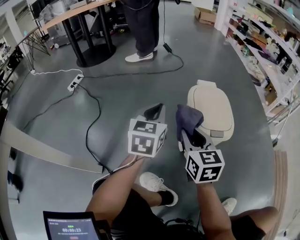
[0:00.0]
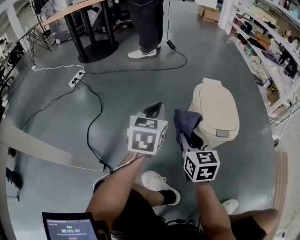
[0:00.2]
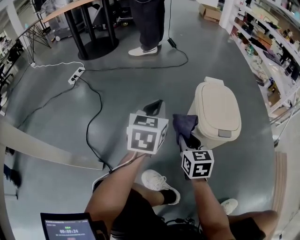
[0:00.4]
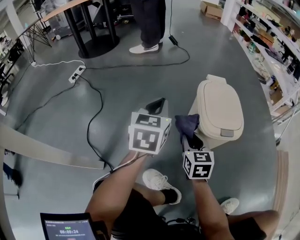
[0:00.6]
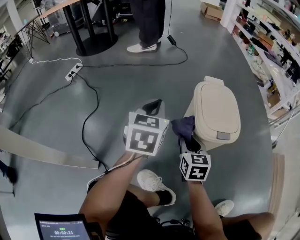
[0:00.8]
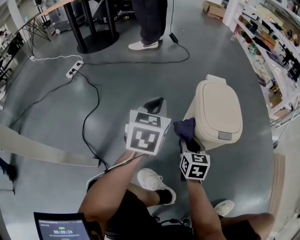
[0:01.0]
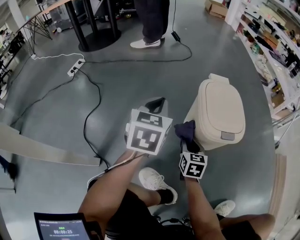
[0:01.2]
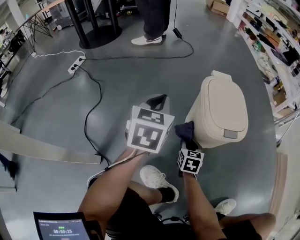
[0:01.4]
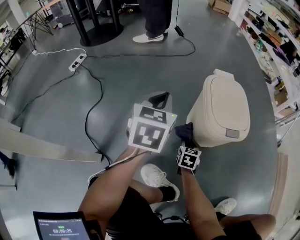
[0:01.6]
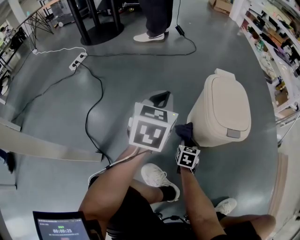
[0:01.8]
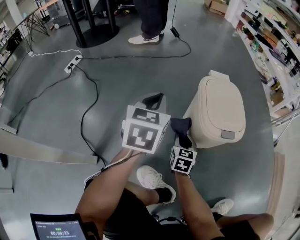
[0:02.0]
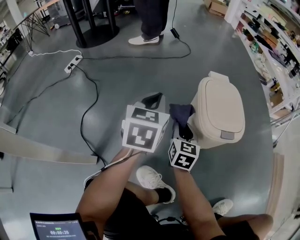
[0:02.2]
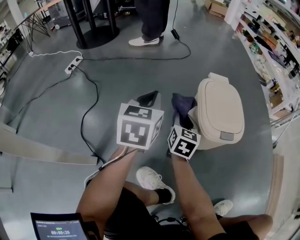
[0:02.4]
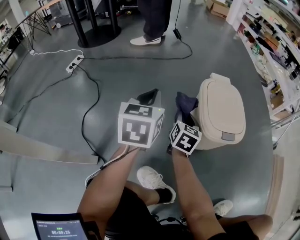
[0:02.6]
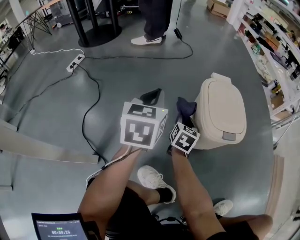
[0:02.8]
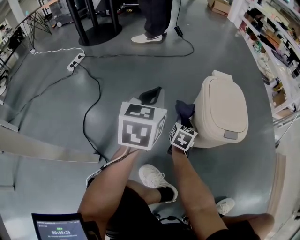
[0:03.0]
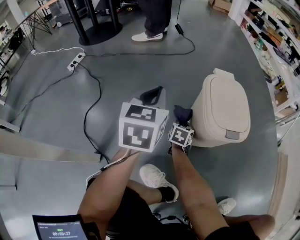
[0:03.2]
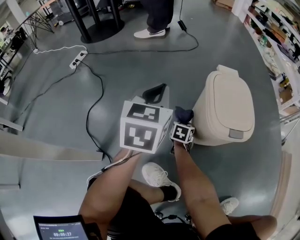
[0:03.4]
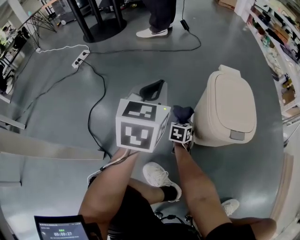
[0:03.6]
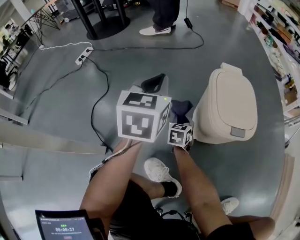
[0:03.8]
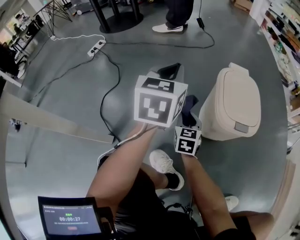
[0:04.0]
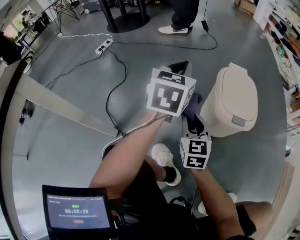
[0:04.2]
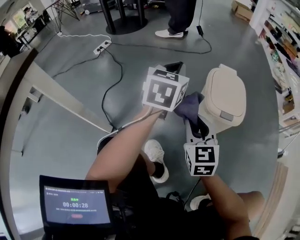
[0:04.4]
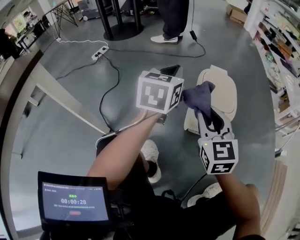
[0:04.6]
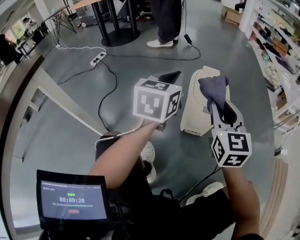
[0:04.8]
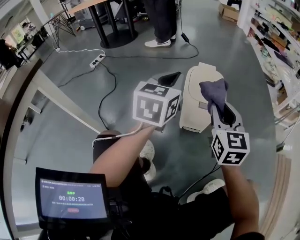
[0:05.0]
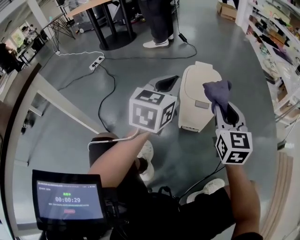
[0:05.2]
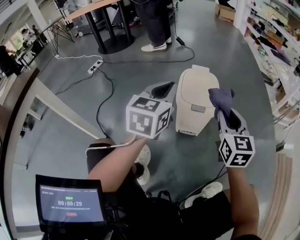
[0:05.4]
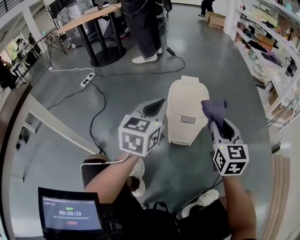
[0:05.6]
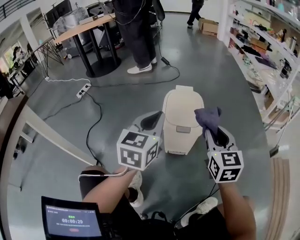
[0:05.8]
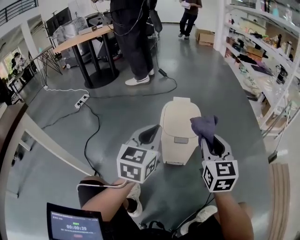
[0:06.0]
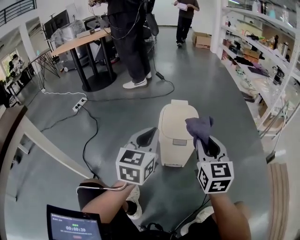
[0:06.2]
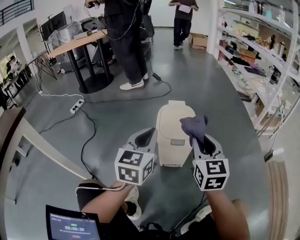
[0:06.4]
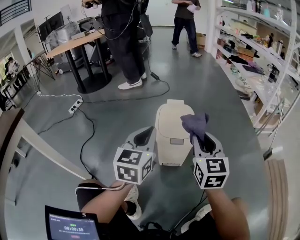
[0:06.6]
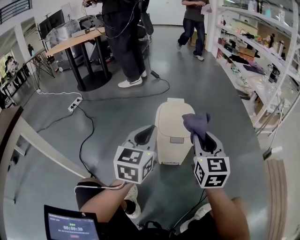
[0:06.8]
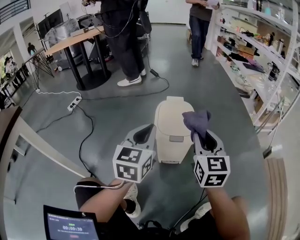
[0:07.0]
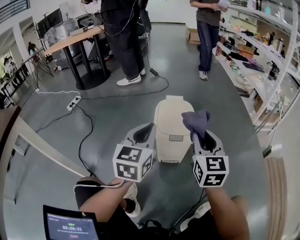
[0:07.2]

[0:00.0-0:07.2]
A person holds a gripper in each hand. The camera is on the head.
0:00.0 to 0:01.4: The right gripper shifts roughly 25 cm downward, and rotates roughly 20 degrees.
0:01.4 to 0:02.8: The right gripper swings up and down, some 20 cm each way, with 2 reversals.
0:02.8 to 0:04.4: The left gripper moves upward, approximately 10 cm; the right gripper heads backward and upward, covering roughly 25 cm, and turns by some 40 degrees.
0:04.4 to 0:05.8: The left gripper goes approximately 20 cm to the right and backward; the right gripper goes approximately 25 cm to the right.
0:05.8 to 0:07.2: The grippers move only a little.

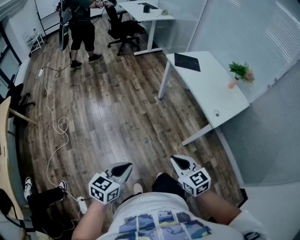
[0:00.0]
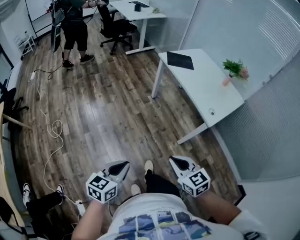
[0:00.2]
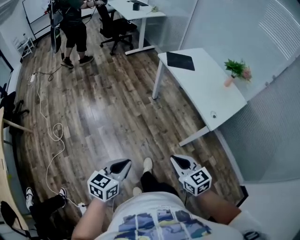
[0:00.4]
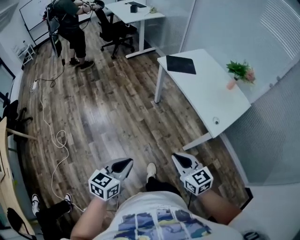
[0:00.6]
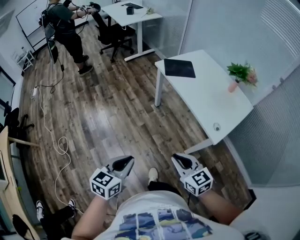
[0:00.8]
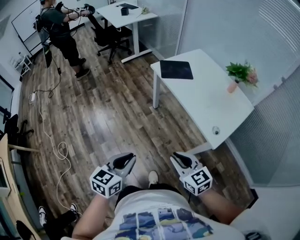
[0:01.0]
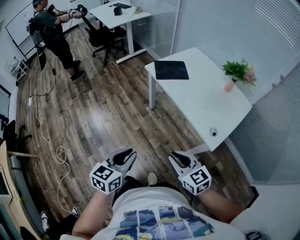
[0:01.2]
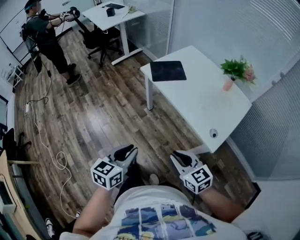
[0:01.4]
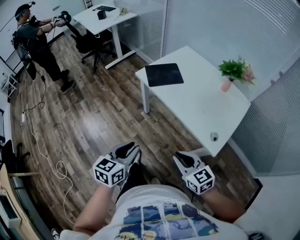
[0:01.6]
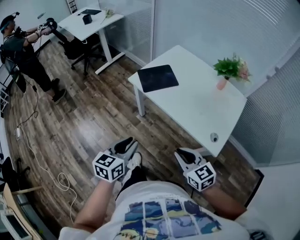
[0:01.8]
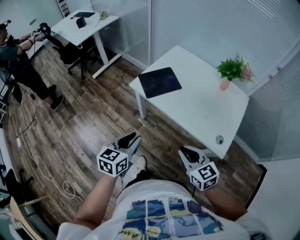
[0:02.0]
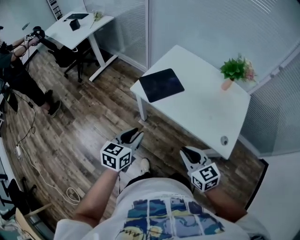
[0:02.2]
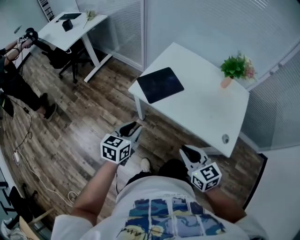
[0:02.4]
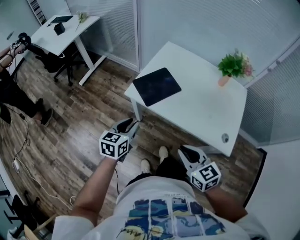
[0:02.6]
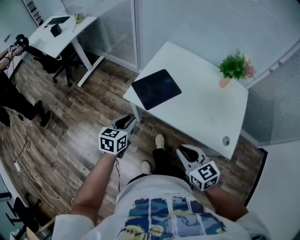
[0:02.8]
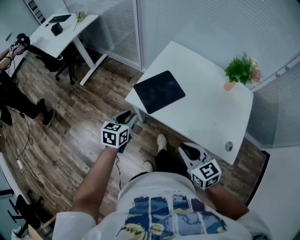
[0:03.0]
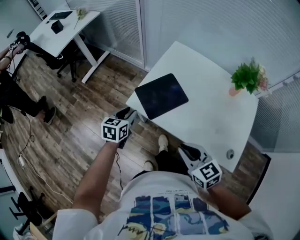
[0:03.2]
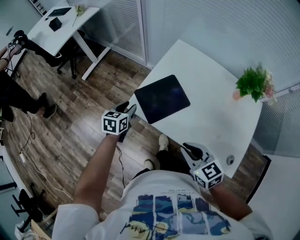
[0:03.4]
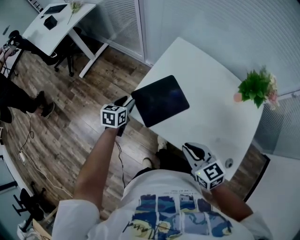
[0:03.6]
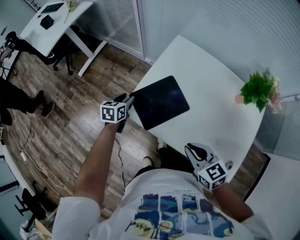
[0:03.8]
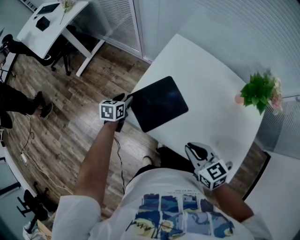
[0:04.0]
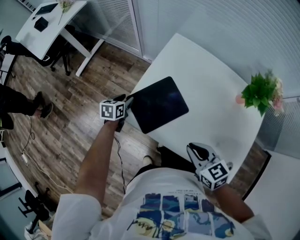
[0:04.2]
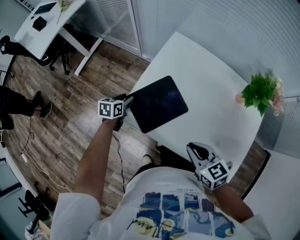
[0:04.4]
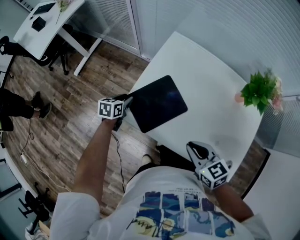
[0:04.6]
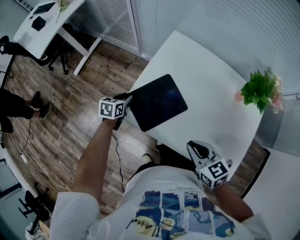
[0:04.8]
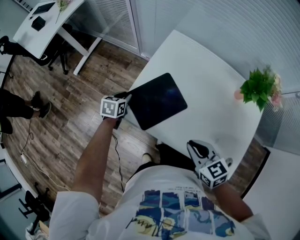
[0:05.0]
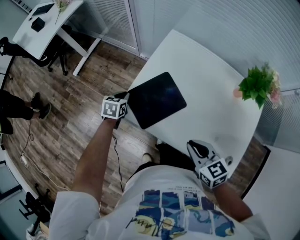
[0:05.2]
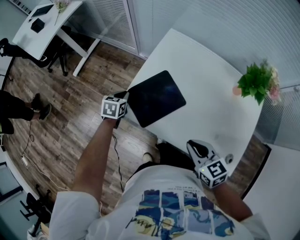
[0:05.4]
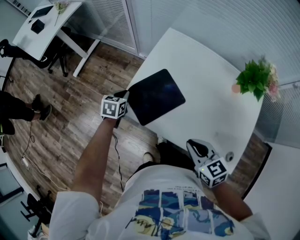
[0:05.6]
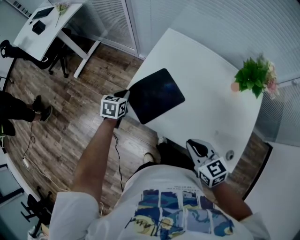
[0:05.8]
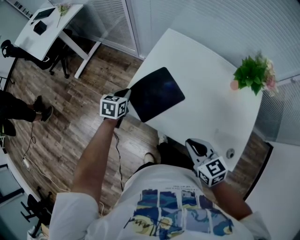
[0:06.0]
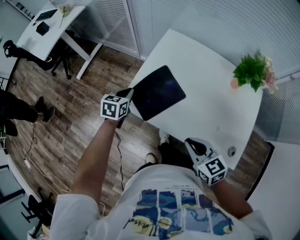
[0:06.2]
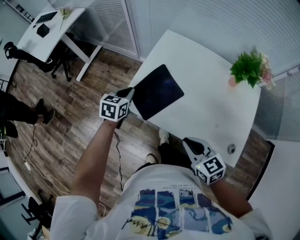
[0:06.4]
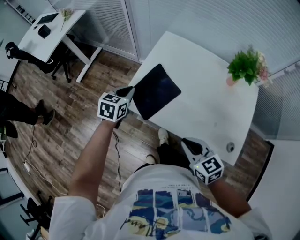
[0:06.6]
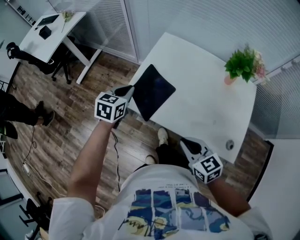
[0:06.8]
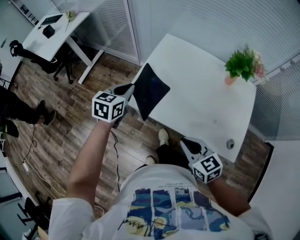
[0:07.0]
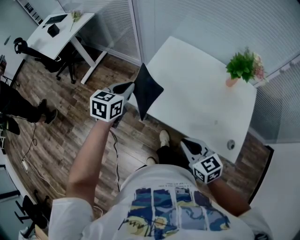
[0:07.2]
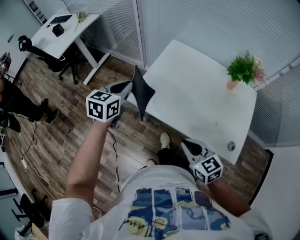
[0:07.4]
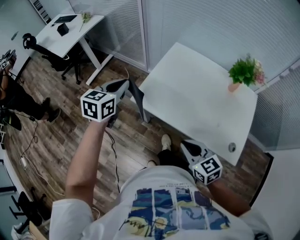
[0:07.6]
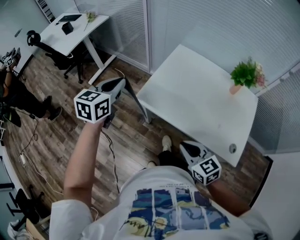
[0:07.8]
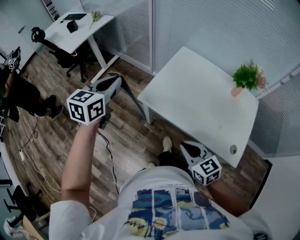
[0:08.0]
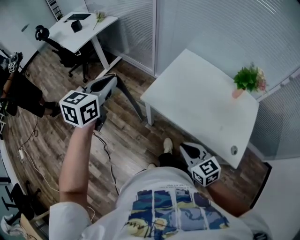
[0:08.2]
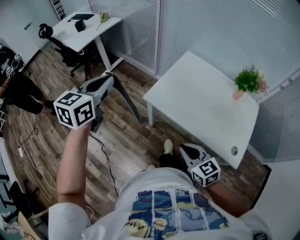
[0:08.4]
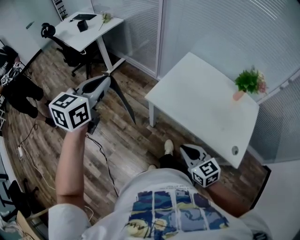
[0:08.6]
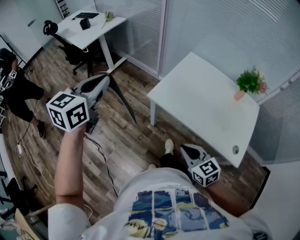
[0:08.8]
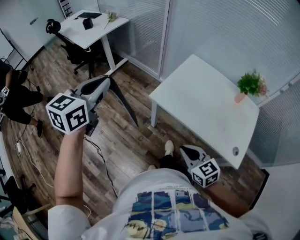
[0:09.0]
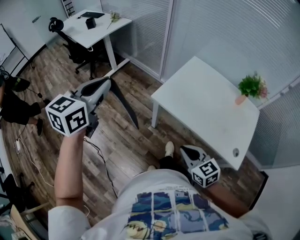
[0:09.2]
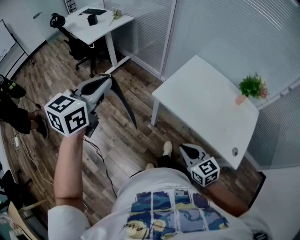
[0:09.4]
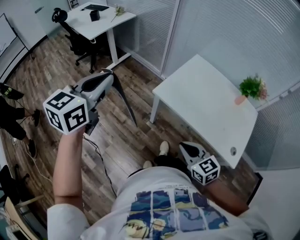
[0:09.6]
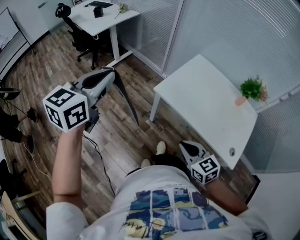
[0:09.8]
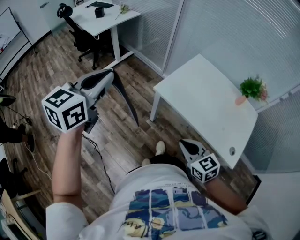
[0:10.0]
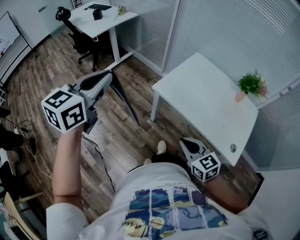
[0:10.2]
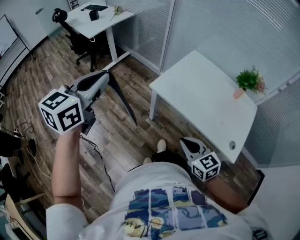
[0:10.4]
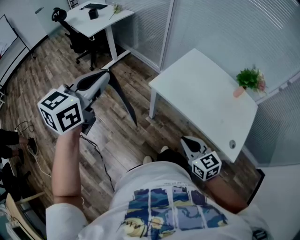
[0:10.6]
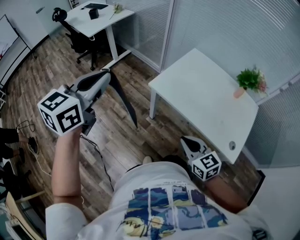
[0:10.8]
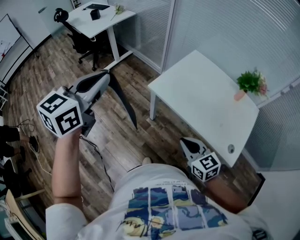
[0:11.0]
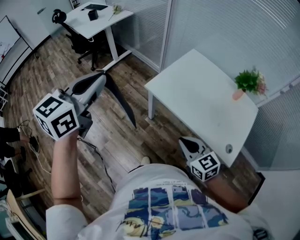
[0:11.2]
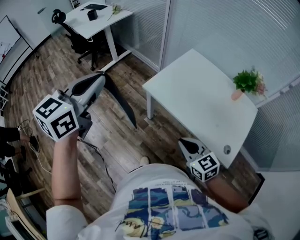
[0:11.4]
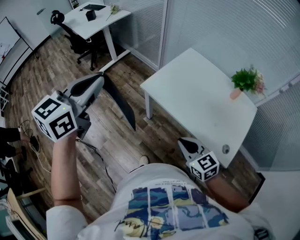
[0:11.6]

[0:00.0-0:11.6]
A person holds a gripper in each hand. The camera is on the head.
0:00.0 to 0:01.4: Both grippers move forward, some 35 cm.
0:01.4 to 0:02.8: The left gripper moves forward, about 50 cm, while the right gripper travels forward and to the left by some 30 cm, and swivels roughly 30 degrees.
0:02.8 to 0:04.4: The right gripper shifts some 20 cm forward. Meanwhile the left gripper goes roughly 35 cm forward and downward, and turns by roughly 20 degrees.
0:04.4 to 0:05.8: The left gripper shifts roughly 5 cm upward, and closes.
0:05.8 to 0:07.2: The right gripper goes roughly 10 cm backward. The left gripper shifts about 25 cm upward and backward.
0:07.2 to 0:08.8: The right gripper moves to the left and backward, roughly 15 cm; the left gripper travels to the left, upward and backward by roughly 35 cm.
0:08.8 to 0:10.2: The left gripper goes approximately 10 cm backward.
0:10.2 to 0:11.6: The two grippers go some 10 cm to the right.

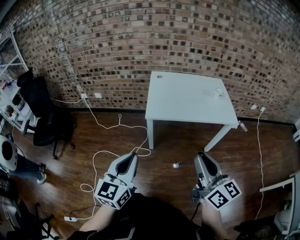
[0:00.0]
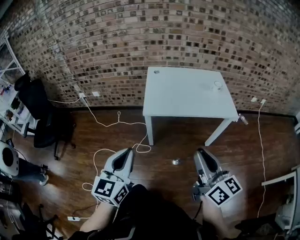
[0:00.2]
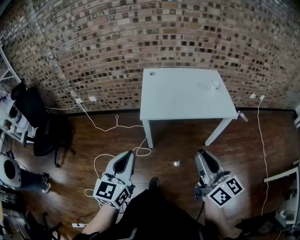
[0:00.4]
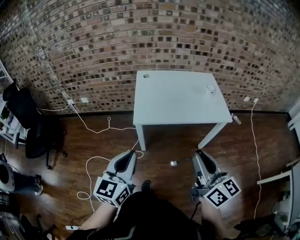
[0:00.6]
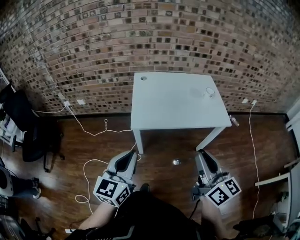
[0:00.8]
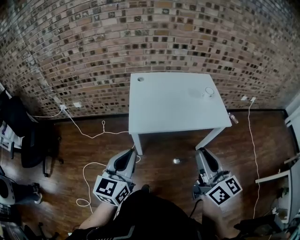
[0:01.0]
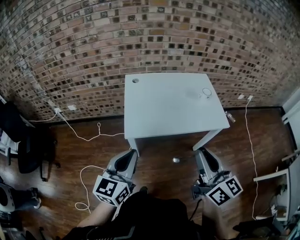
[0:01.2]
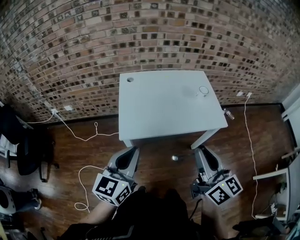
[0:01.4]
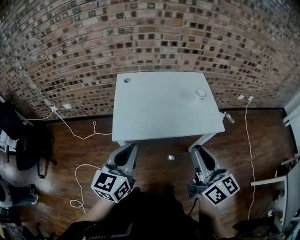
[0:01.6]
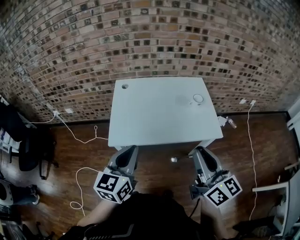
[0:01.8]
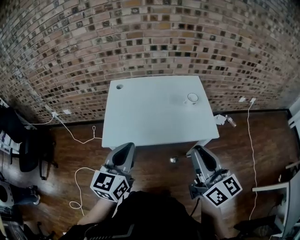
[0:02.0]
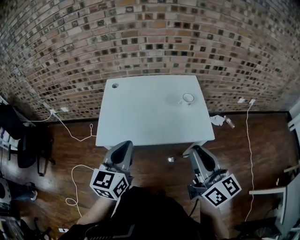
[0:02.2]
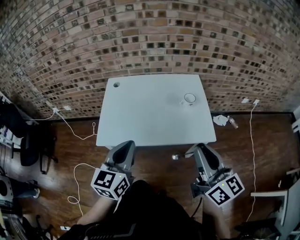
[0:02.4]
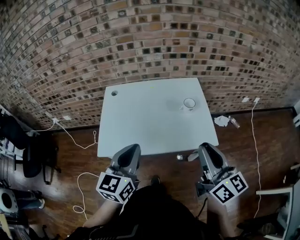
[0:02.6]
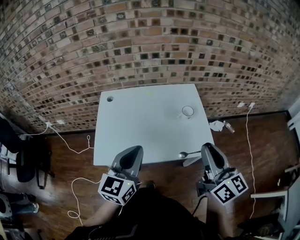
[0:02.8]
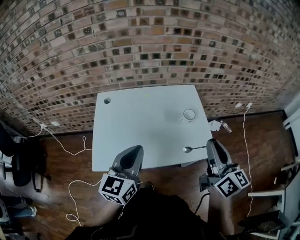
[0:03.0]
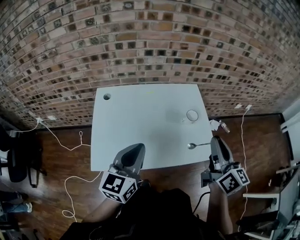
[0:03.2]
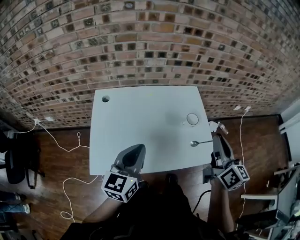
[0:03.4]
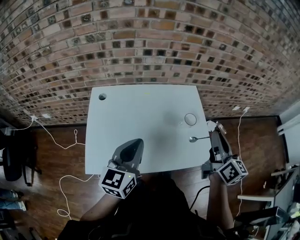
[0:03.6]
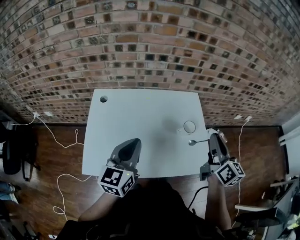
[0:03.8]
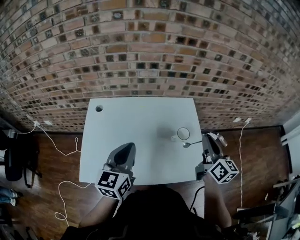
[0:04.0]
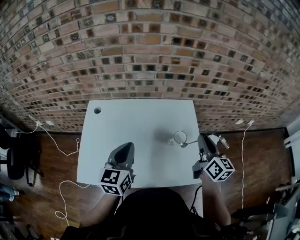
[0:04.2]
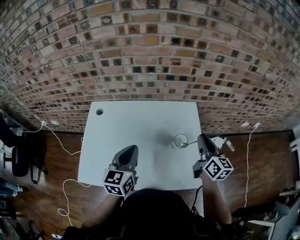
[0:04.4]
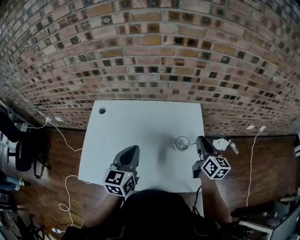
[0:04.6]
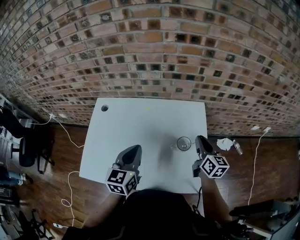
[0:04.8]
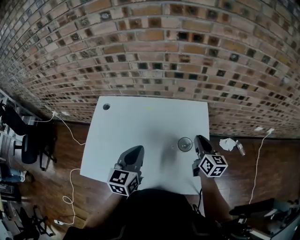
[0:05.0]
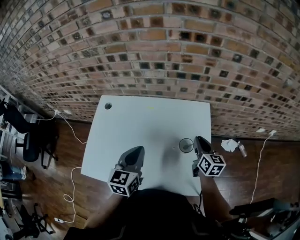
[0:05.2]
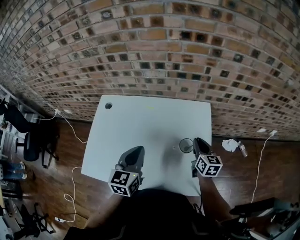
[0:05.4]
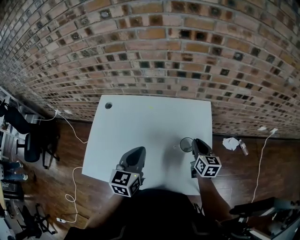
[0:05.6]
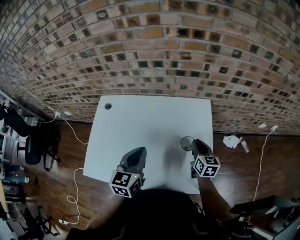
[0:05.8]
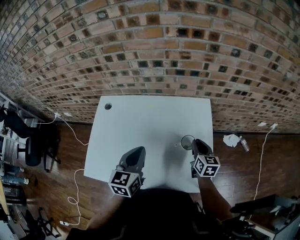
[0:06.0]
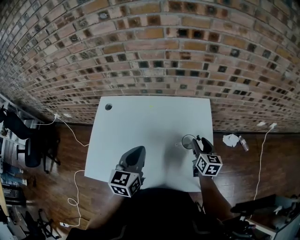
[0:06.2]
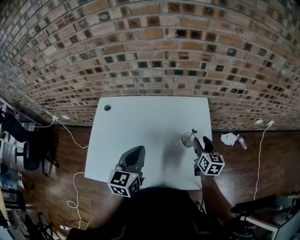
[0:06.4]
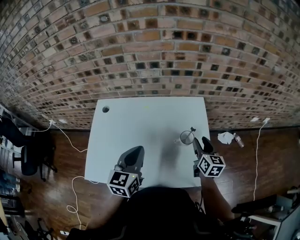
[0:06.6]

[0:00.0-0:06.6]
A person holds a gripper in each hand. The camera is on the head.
0:00.0 to 0:01.6: The two grippers go approximately 30 cm forward and to the right.
0:01.6 to 0:03.2: Both grippers move forward and to the right, approximately 25 cm.
0:03.2 to 0:05.0: The left gripper heads forward, to the right and downward, covering some 20 cm, and turns by approximately 20 degrees. Meanwhile the right gripper moves forward and downward, roughly 35 cm, and changes its angle by approximately 20 degrees.
0:05.0 to 0:06.6: The right gripper changes place by some 5 cm, and opens up.
